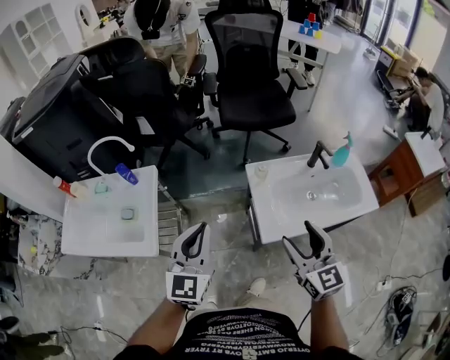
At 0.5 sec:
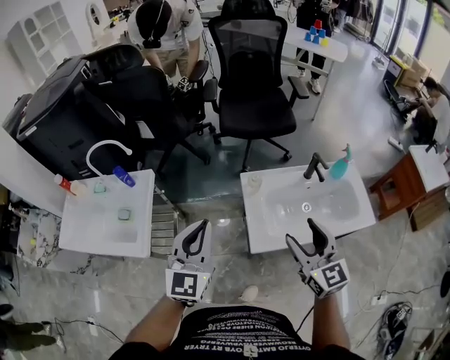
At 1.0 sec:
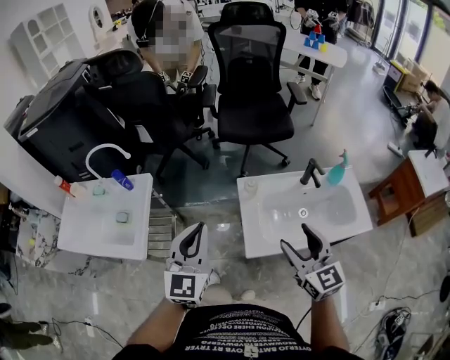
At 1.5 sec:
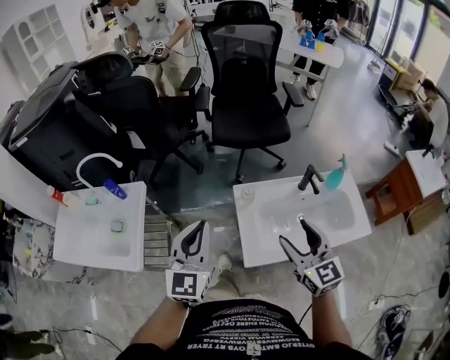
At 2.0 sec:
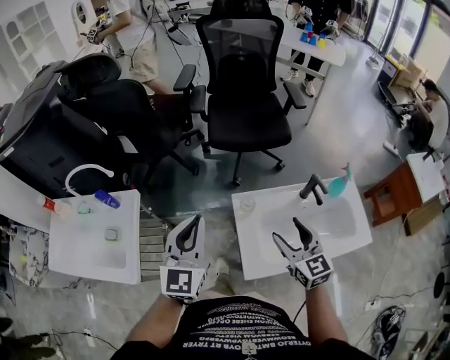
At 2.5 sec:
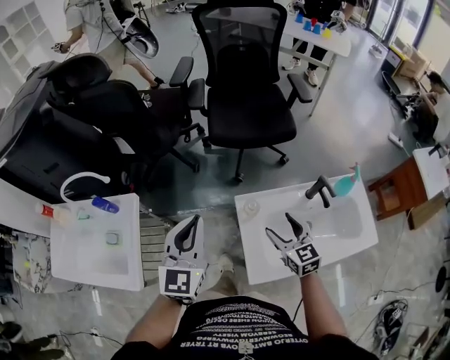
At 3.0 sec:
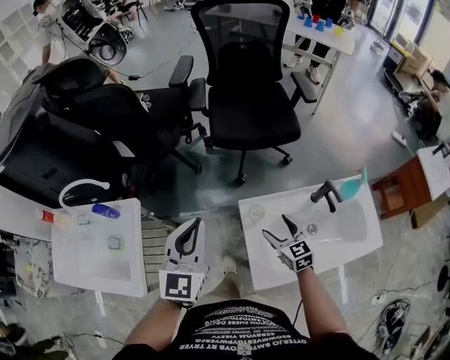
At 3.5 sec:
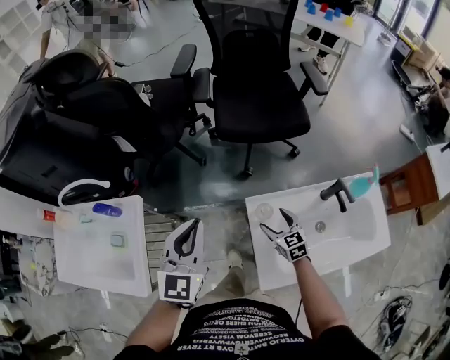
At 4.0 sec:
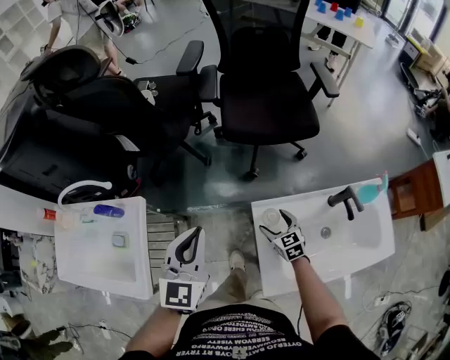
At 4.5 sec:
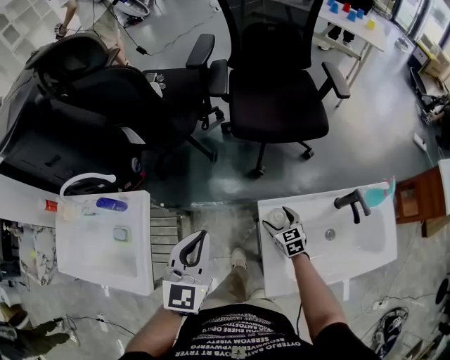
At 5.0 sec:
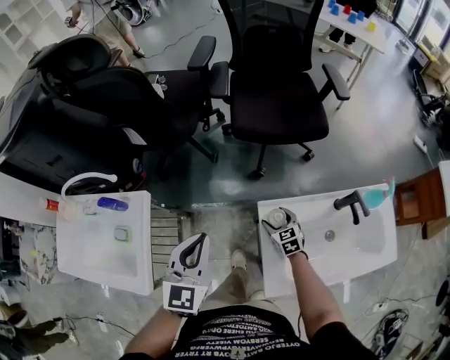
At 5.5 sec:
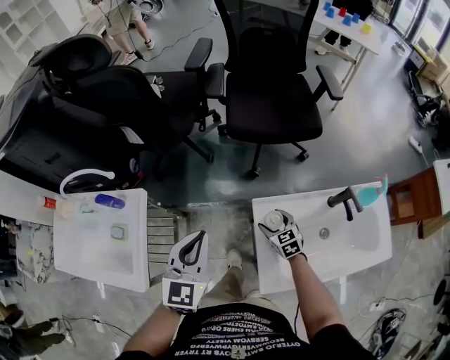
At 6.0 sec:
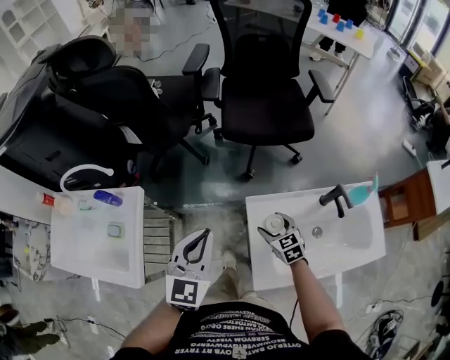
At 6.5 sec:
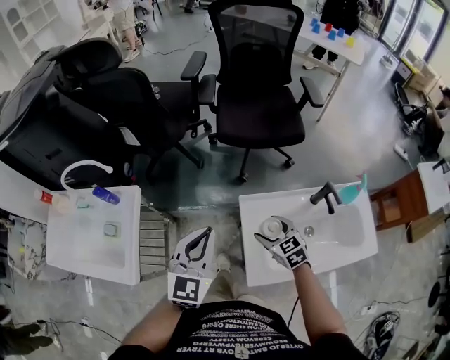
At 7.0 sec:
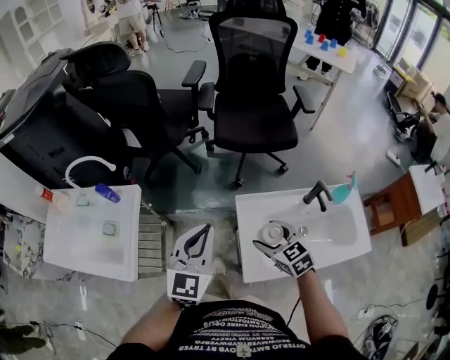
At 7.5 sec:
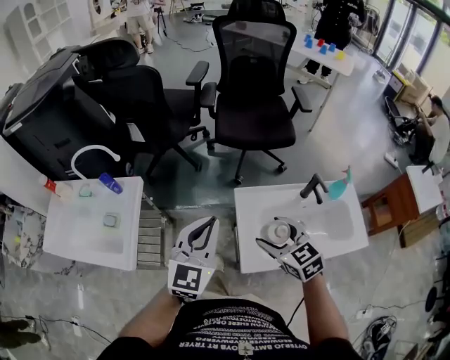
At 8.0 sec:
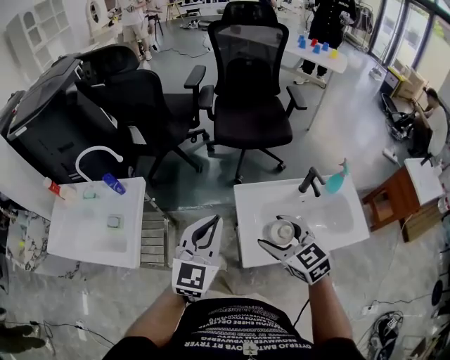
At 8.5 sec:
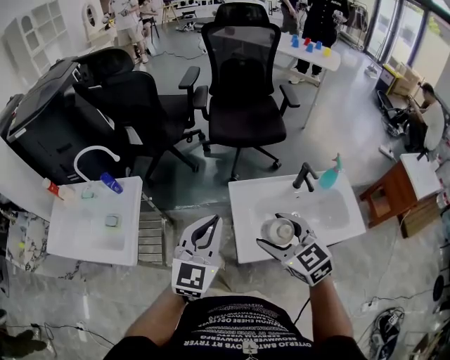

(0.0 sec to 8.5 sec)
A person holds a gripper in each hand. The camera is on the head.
0.0 sec - 2.0 sec: The grippers both shift forward and to the right by approximately 20 cm.
2.0 sec - 4.0 sec: The left gripper is displaced forward and downward by approximately 15 cm; the right gripper goes approximately 35 cm downward and forward, and rotates roughly 20 degrees.
4.0 sec - 6.5 sec: The right gripper shifts roughly 15 cm upward and backward, while the left gripper is displaced backward by some 10 cm.
6.5 sec - 8.5 sec: The left gripper heads backward and upward, covering some 15 cm; the right gripper is displaced upward and backward by about 30 cm.

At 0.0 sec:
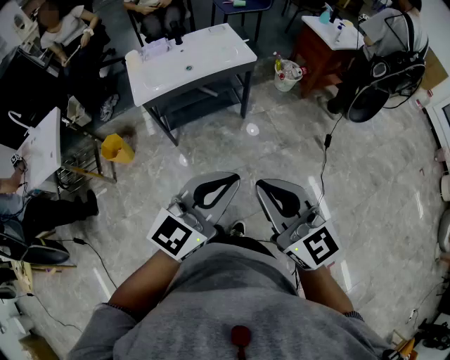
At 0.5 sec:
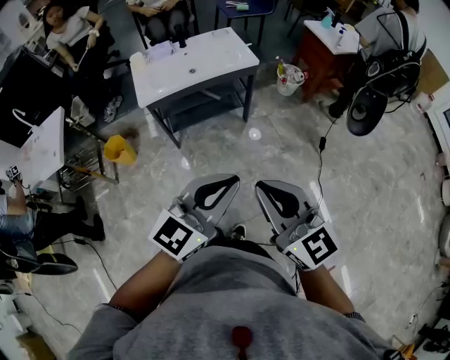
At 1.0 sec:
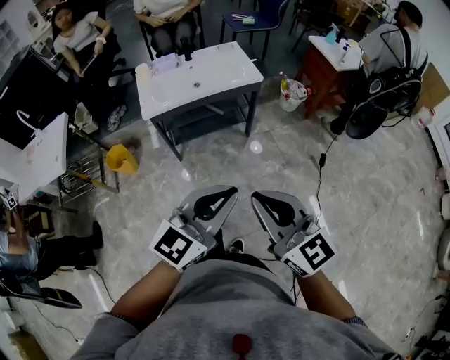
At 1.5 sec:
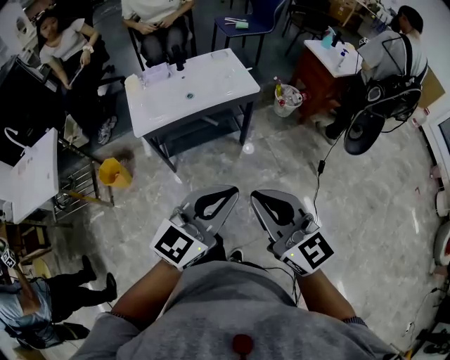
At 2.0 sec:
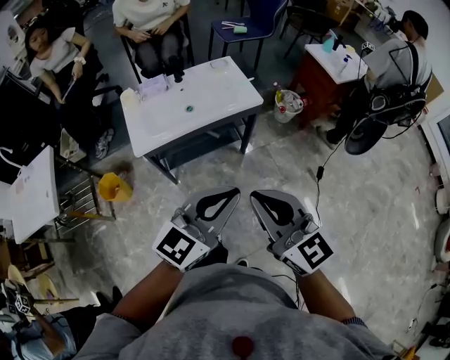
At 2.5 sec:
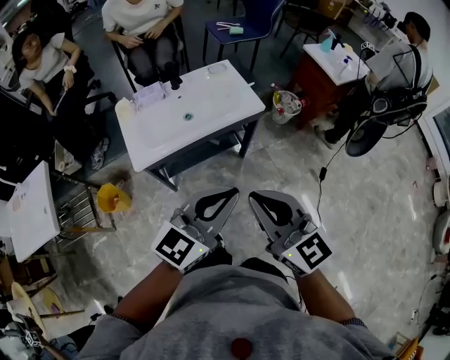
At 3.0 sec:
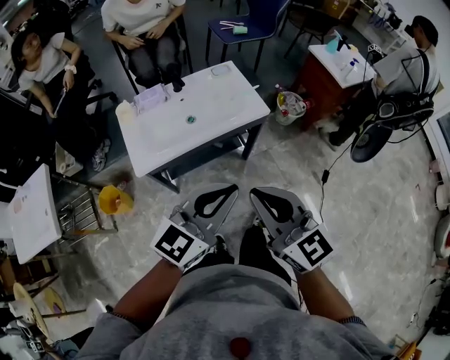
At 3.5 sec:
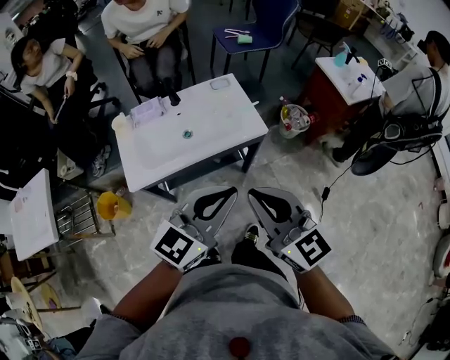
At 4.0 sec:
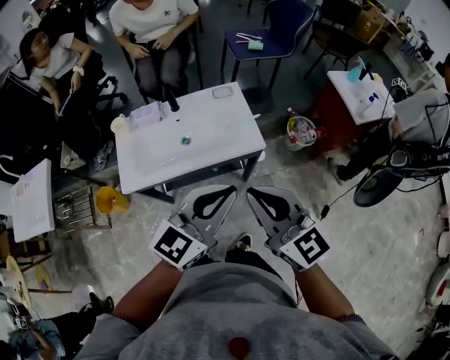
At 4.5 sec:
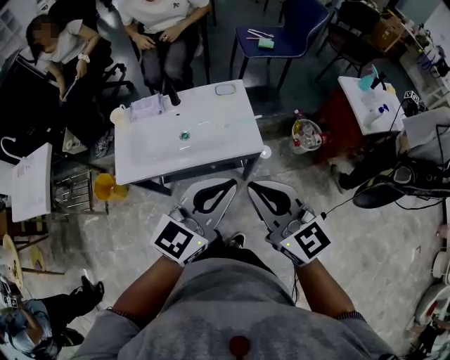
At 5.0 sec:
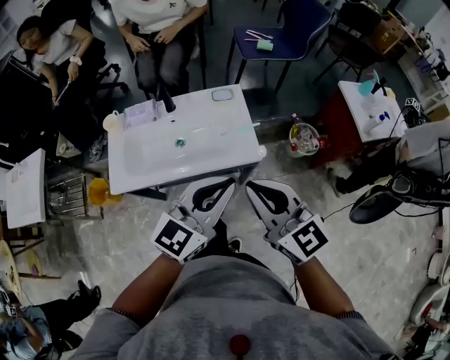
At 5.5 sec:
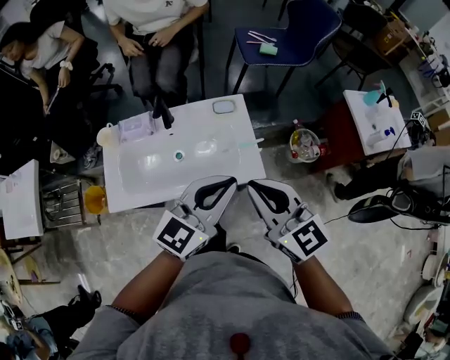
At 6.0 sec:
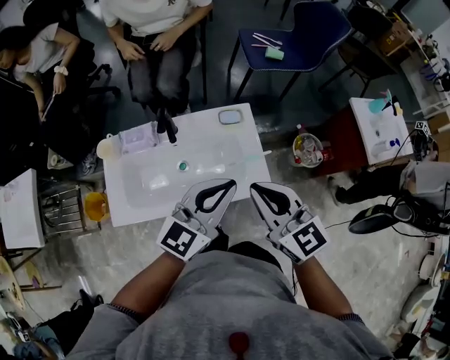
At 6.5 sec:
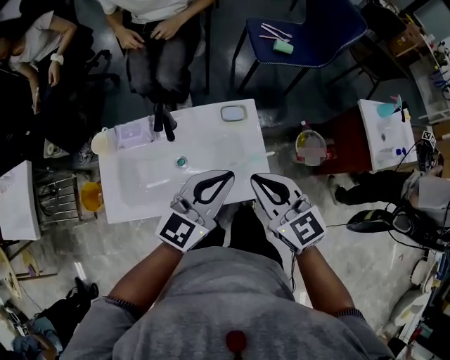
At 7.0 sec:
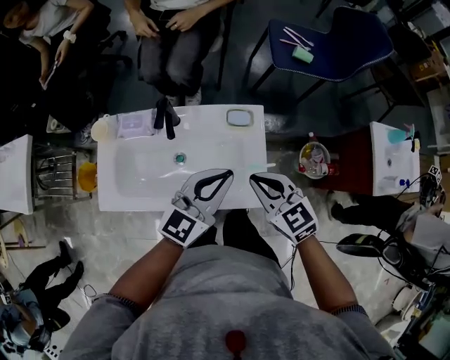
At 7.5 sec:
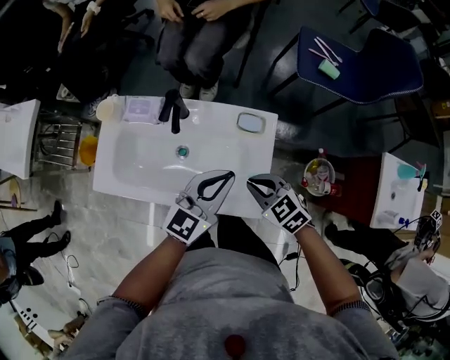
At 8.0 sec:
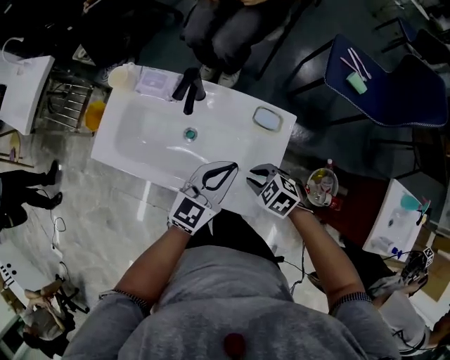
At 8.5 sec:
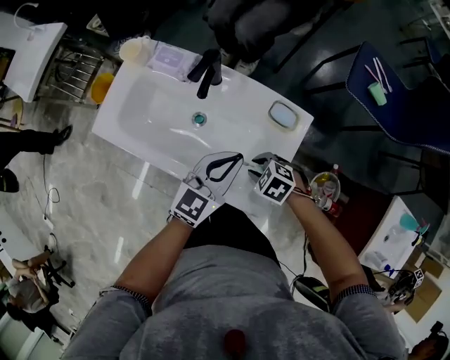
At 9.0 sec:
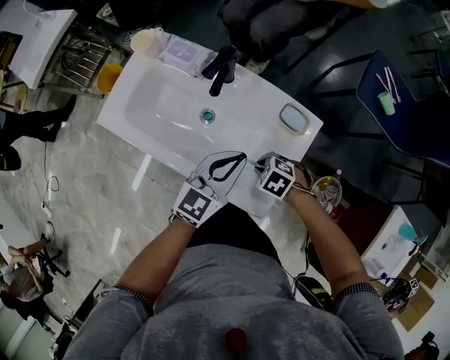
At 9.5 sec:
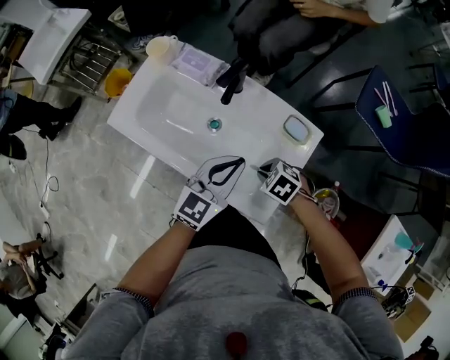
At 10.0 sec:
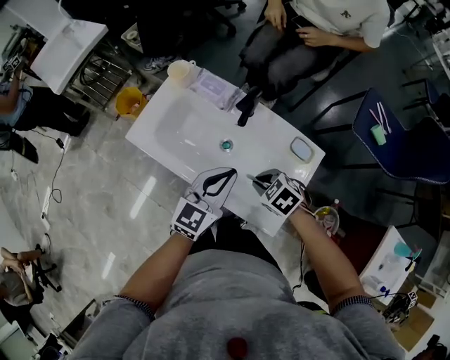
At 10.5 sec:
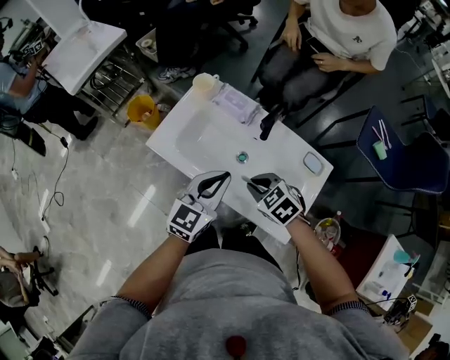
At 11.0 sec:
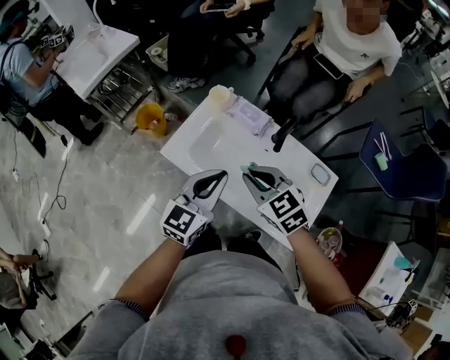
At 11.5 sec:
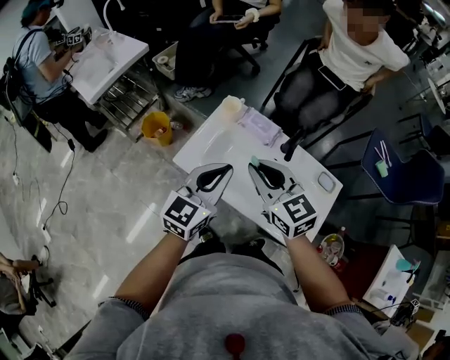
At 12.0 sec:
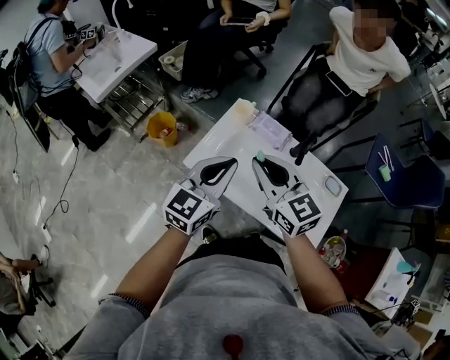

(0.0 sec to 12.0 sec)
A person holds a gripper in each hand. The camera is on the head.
0.0 sec - 2.0 sec: Both grippers travel together forward, approximately 20 cm.
2.0 sec - 4.0 sec: Both grippers move forward, roughly 30 cm.
4.0 sec - 6.0 sec: The grippers both shift forward by some 25 cm.
6.0 sec - 8.0 sec: The right gripper heads downward, covering about 30 cm, and points its fingers roughly 50 degrees further downward, while the left gripper travels downward by roughly 15 cm, and changes its angle by approximately 30 degrees.
8.0 sec - 10.0 sec: The right gripper goes downward and returns, about 5 cm each way. Meanwhile the left gripper ends up roughly 15 cm from where it was.
10.0 sec - 12.0 sec: The left gripper travels to the left, upward and forward by some 30 cm; the right gripper shifts about 40 cm upward, to the left and forward, and tilts its fingers roughly 50 degrees upward.

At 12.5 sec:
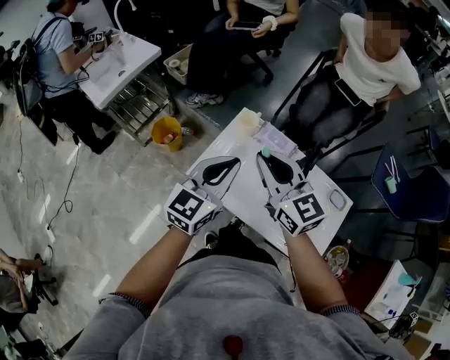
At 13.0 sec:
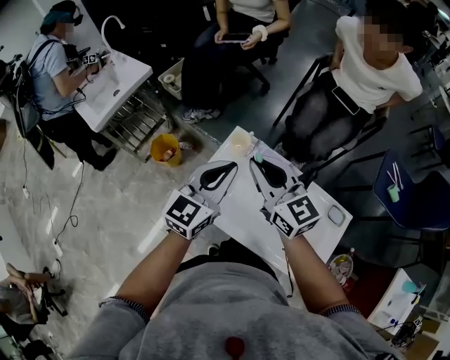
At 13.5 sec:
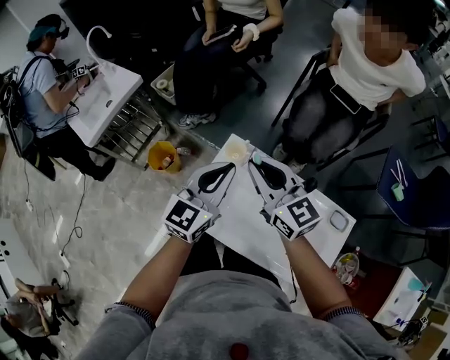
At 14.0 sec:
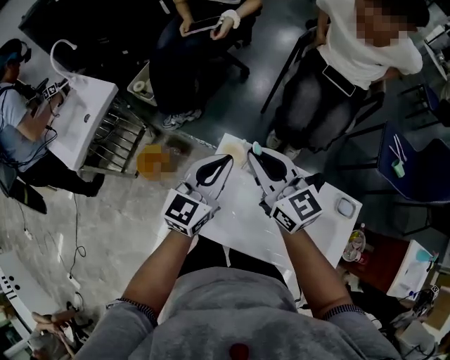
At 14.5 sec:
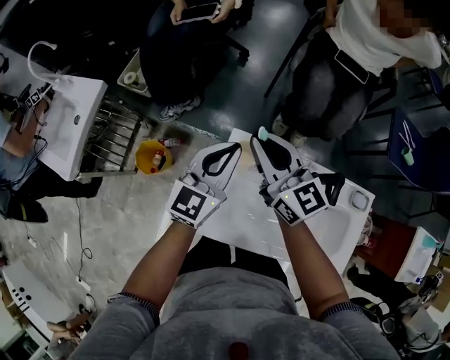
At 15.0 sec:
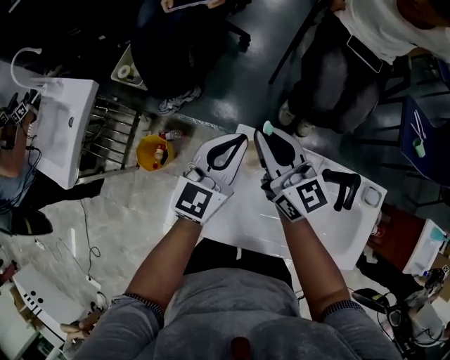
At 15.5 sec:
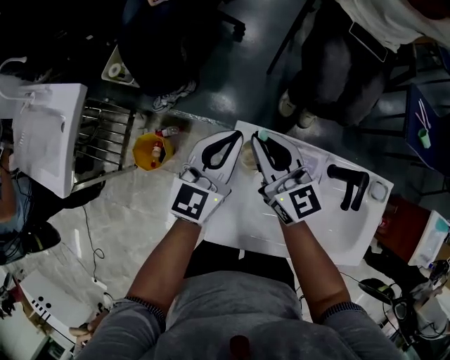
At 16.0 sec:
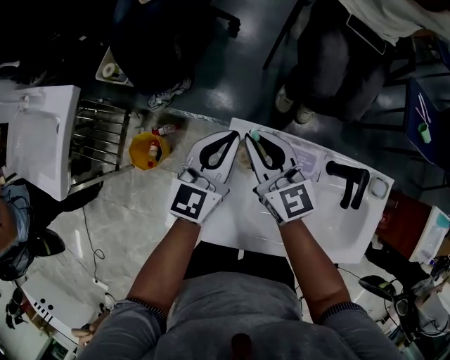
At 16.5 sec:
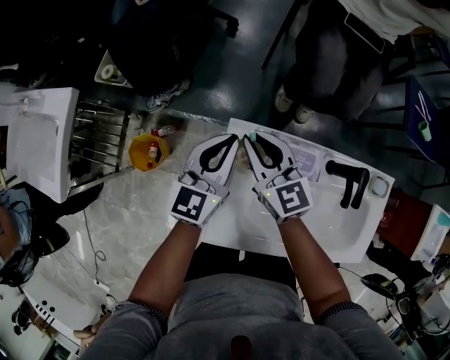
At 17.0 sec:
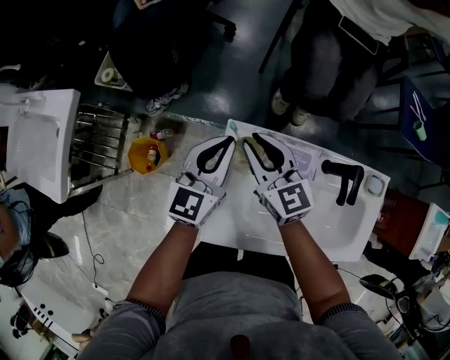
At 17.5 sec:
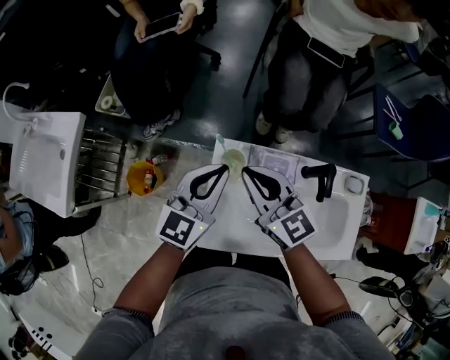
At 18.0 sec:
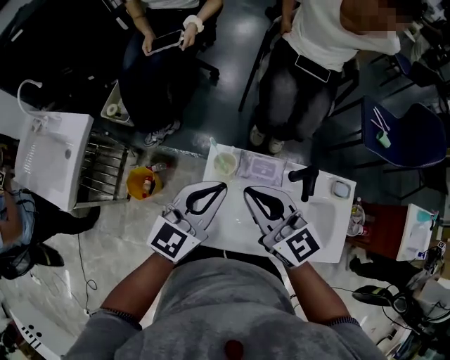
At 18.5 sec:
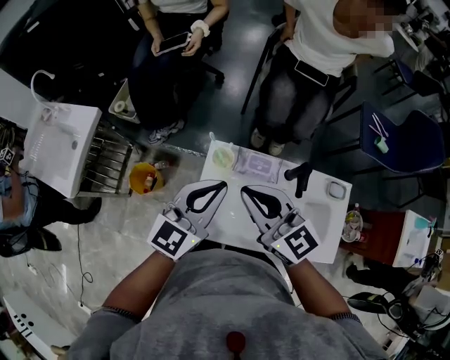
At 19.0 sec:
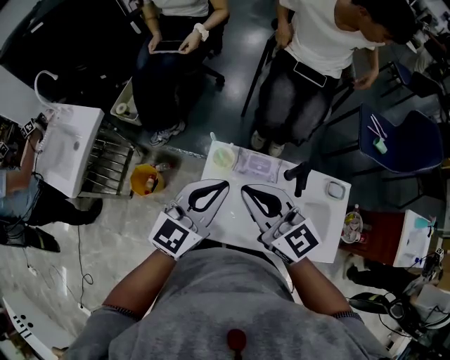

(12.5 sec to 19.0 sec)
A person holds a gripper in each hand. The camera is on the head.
12.5 sec - 14.5 sec: The two grippers go roughly 25 cm forward.
14.5 sec - 17.0 sec: The right gripper is displaced downward by approximately 15 cm, while the left gripper travels downward by about 10 cm.
17.0 sec - 19.0 sec: The two grippers go about 25 cm upward and backward.
